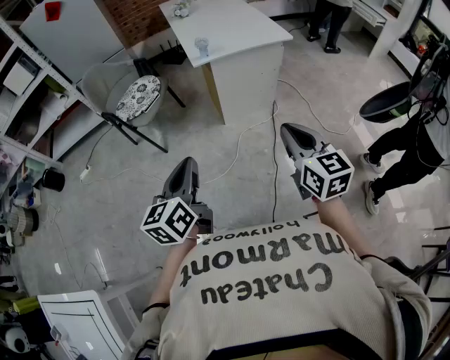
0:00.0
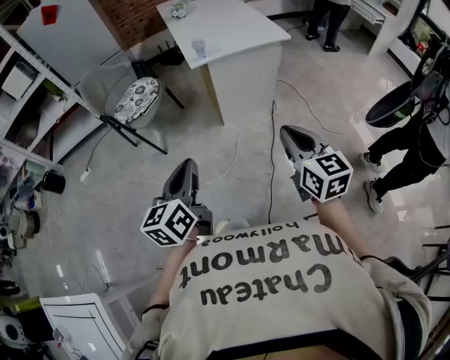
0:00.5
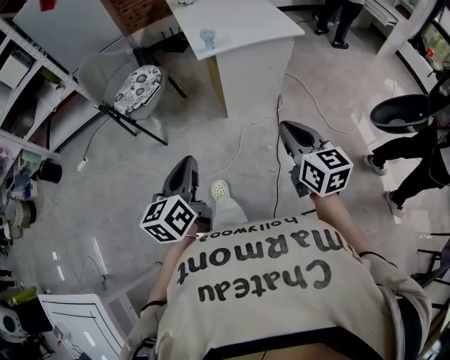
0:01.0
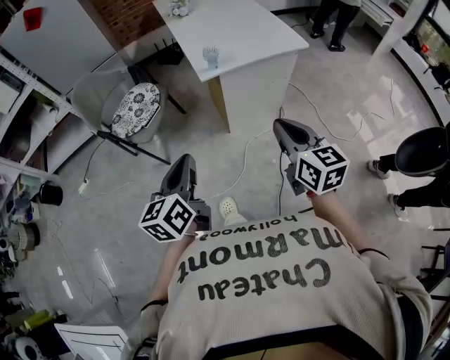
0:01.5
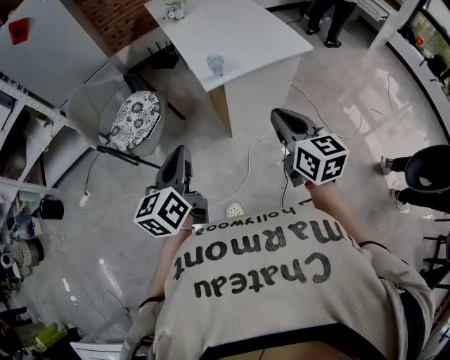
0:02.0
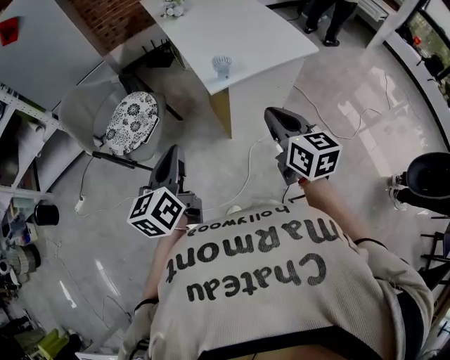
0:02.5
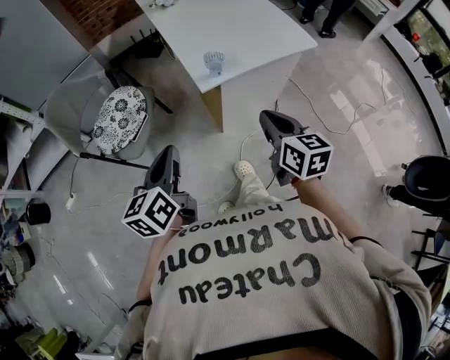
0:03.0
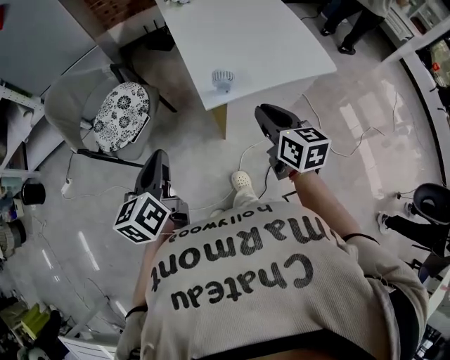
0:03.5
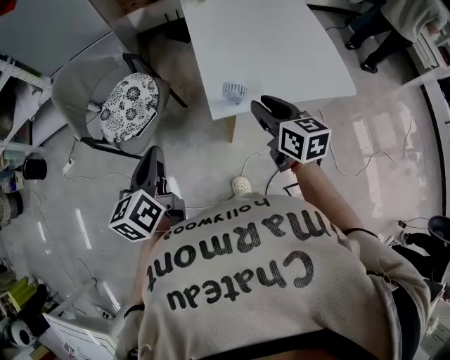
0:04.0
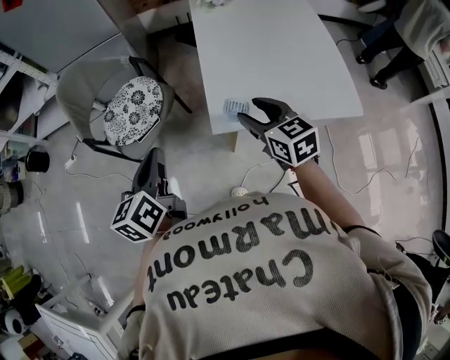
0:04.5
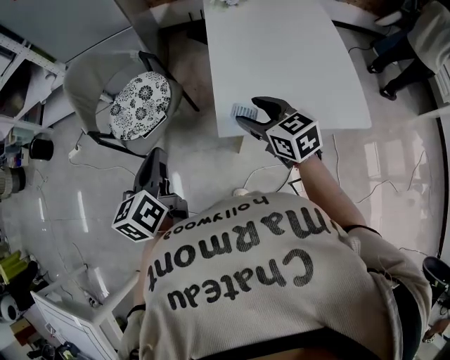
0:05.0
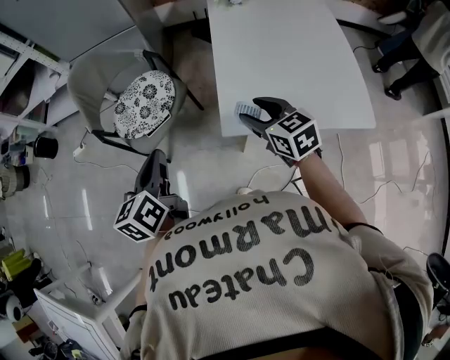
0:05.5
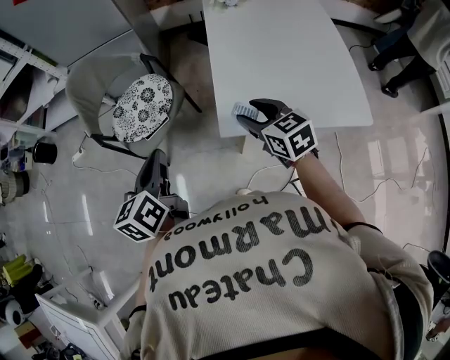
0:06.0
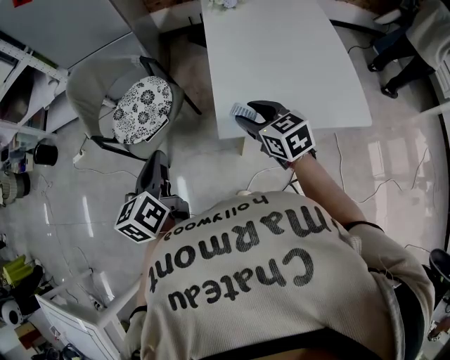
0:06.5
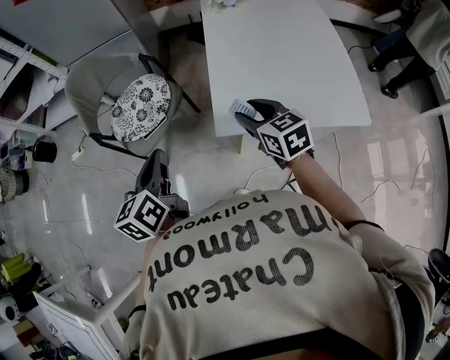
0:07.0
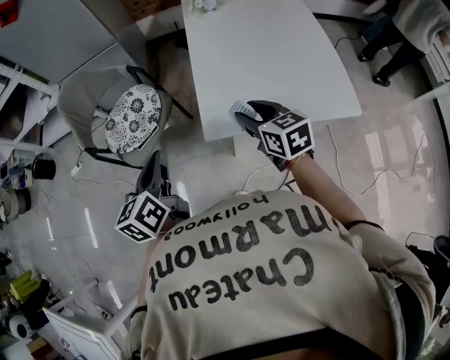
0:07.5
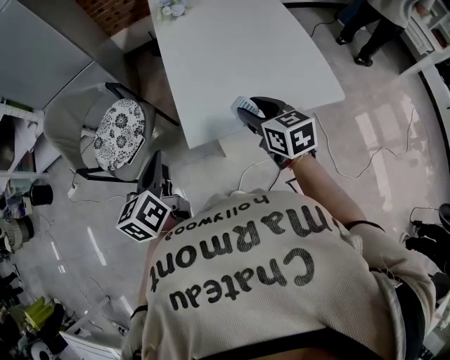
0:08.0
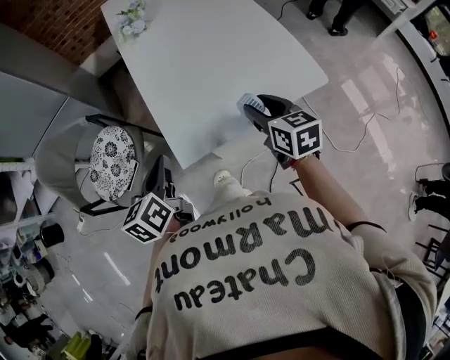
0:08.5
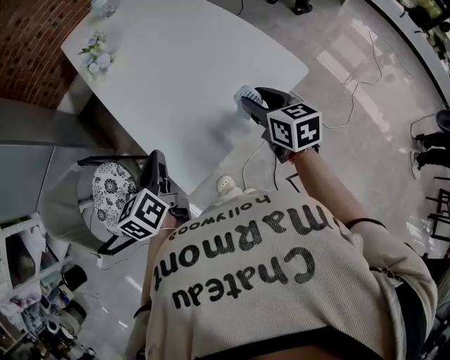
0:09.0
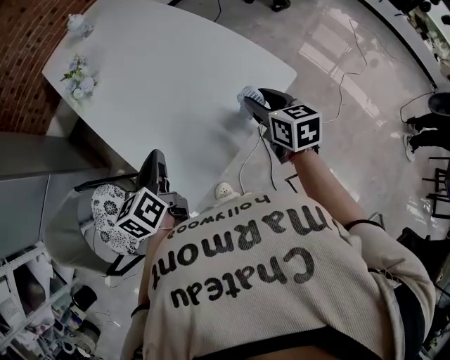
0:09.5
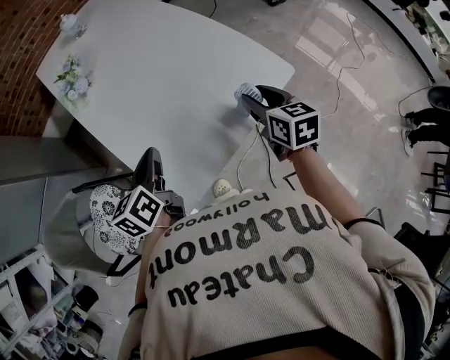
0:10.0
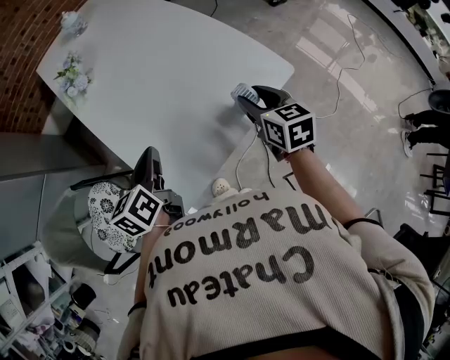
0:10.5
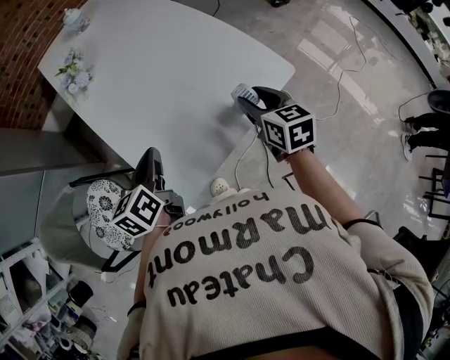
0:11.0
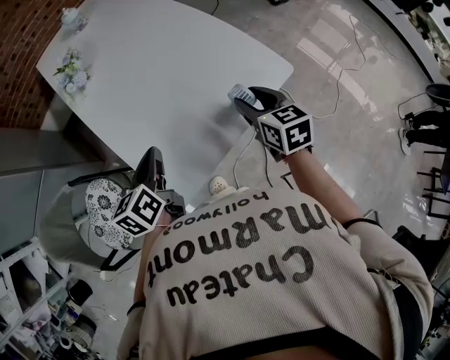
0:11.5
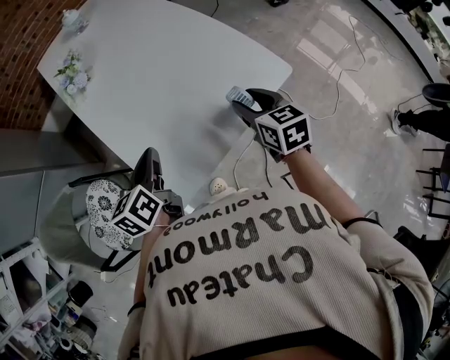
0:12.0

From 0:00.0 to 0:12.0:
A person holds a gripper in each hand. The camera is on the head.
From 0:00.0 to 0:02.0: Both grippers move forward, about 30 cm.
From 0:02.0 to 0:04.0: The two grippers go approximately 25 cm forward. The right gripper opens up, while the left gripper swivels some 20 degrees.
From 0:04.0 to 0:06.0: The right gripper travels forward by some 5 cm, and turns by some 30 degrees.
From 0:06.0 to 0:08.0: The two grippers go about 10 cm to the right. The right gripper swivels approximately 20 degrees.
From 0:08.0 to 0:10.0: The right gripper changes place by roughly 20 cm, and rotates roughly 40 degrees; the left gripper moves approximately 25 cm, and turns by roughly 30 degrees.
From 0:10.0 to 0:12.0: There are only small adjustments of the grippers.

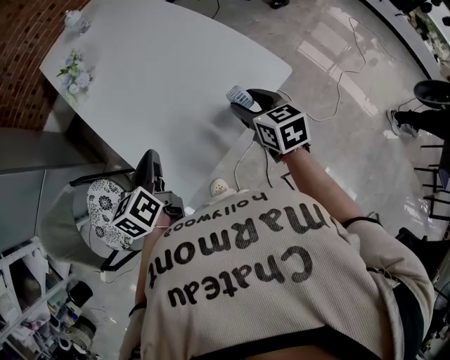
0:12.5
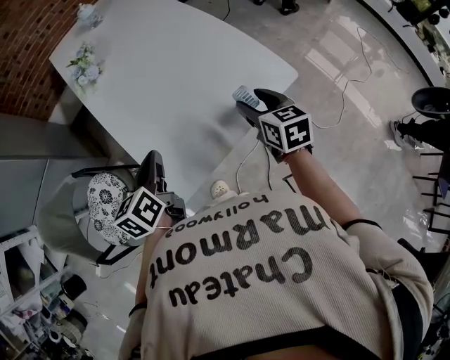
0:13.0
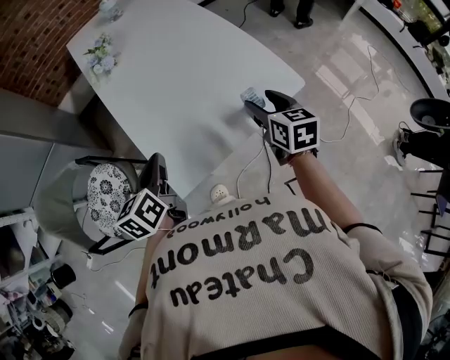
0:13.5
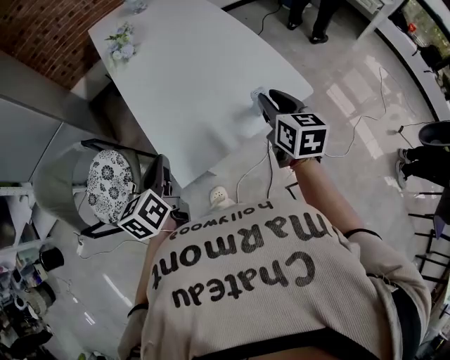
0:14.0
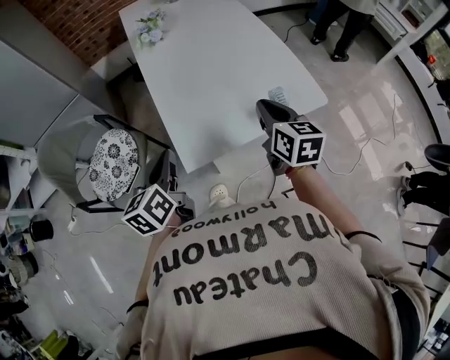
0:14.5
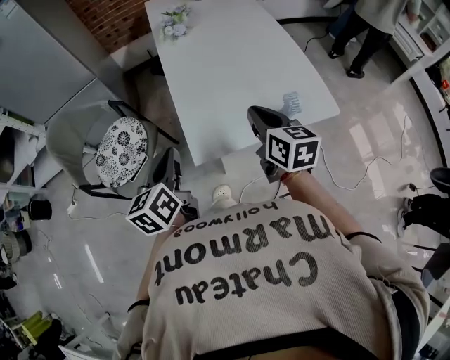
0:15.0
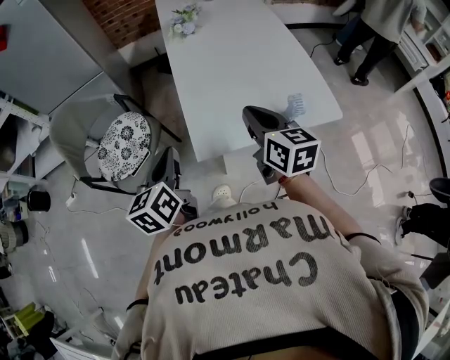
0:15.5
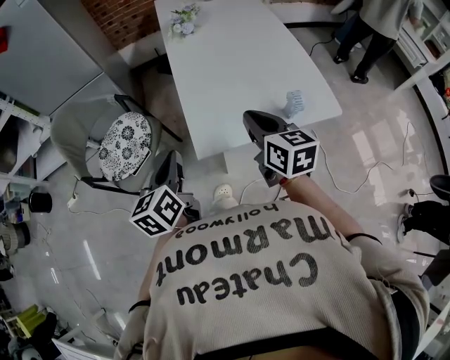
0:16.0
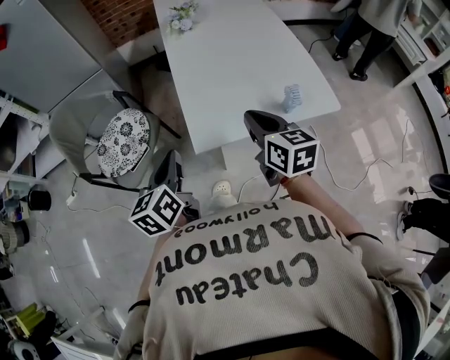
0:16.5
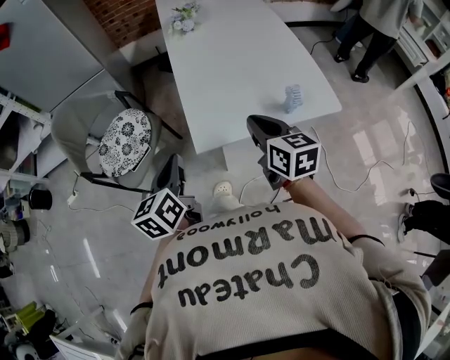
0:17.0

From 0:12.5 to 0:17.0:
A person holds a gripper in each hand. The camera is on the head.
From 0:12.5 to 0:14.5: The right gripper travels to the left, upward and backward by roughly 10 cm, and closes. Meanwhile the left gripper travels backward and to the left by roughly 15 cm, and turns by about 20 degrees.
From 0:14.5 to 0:17.0: The left gripper travels backward by approximately 10 cm. The right gripper goes about 10 cm to the left and backward.

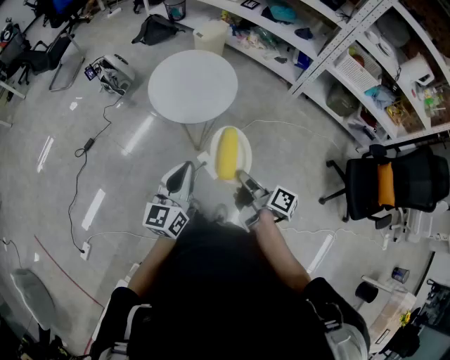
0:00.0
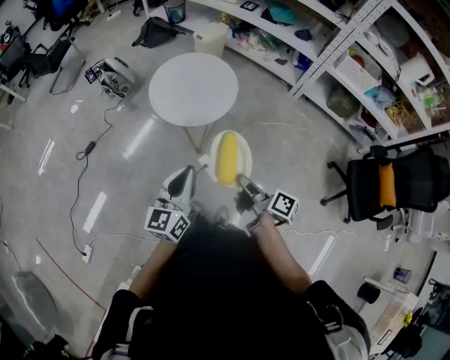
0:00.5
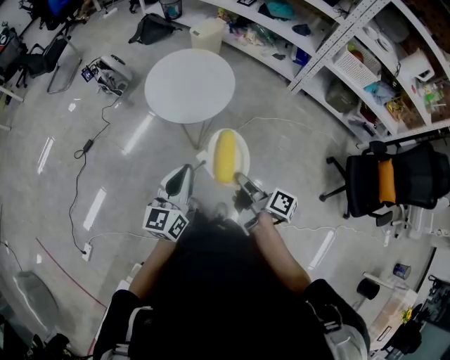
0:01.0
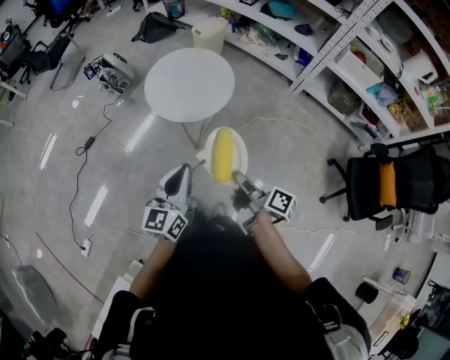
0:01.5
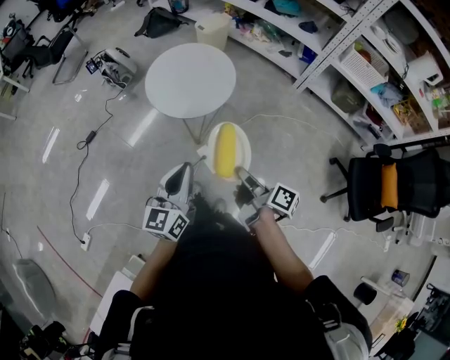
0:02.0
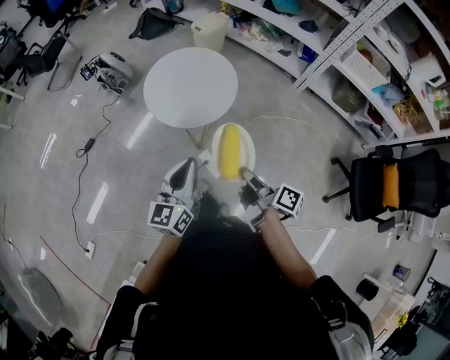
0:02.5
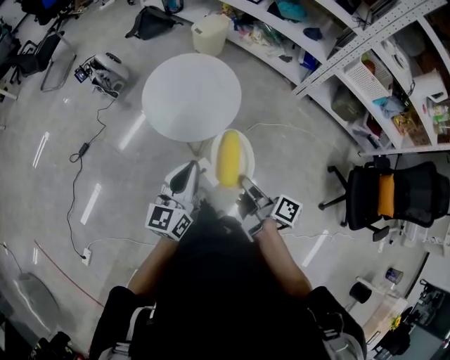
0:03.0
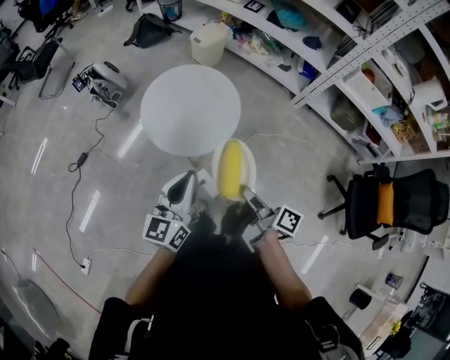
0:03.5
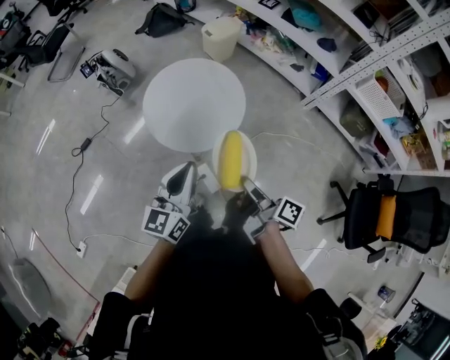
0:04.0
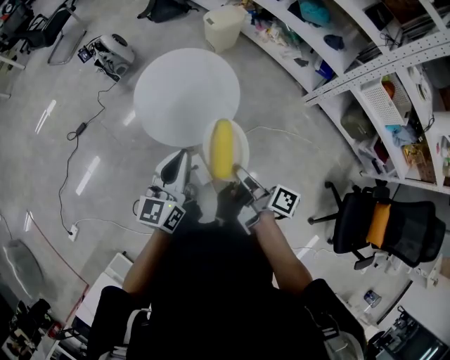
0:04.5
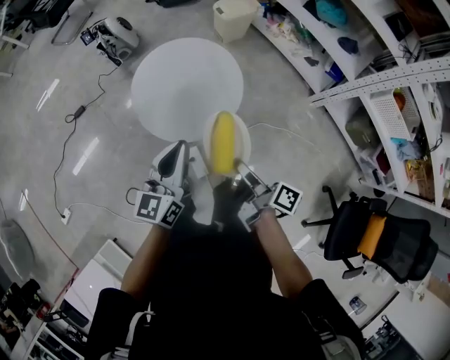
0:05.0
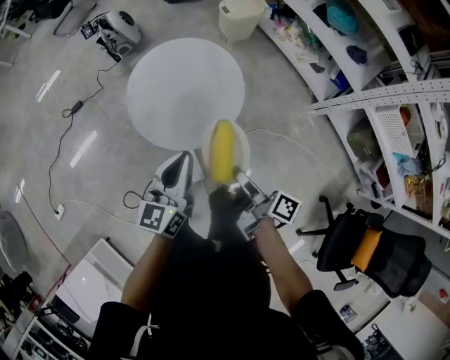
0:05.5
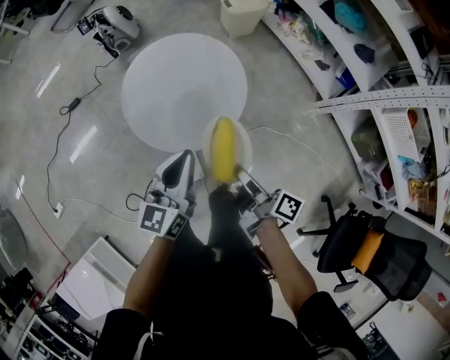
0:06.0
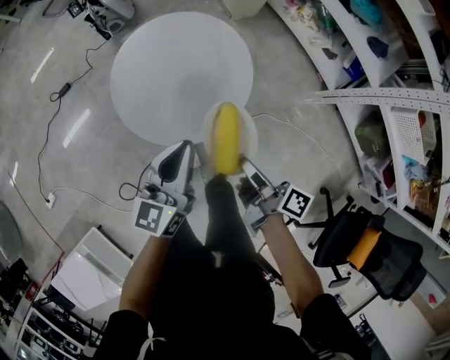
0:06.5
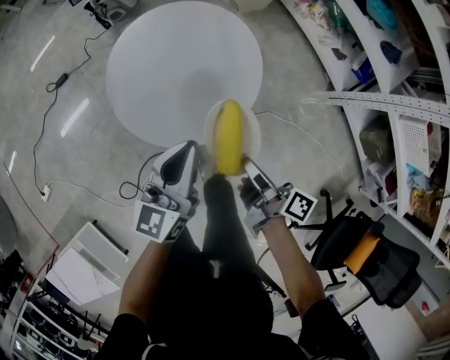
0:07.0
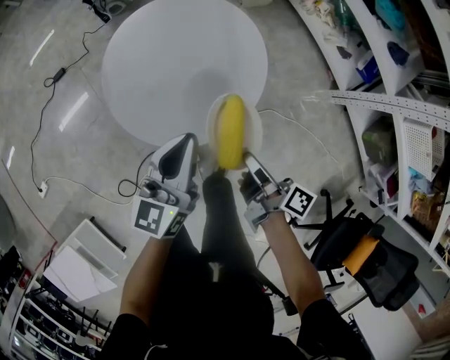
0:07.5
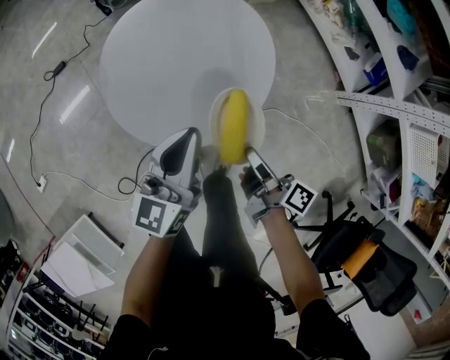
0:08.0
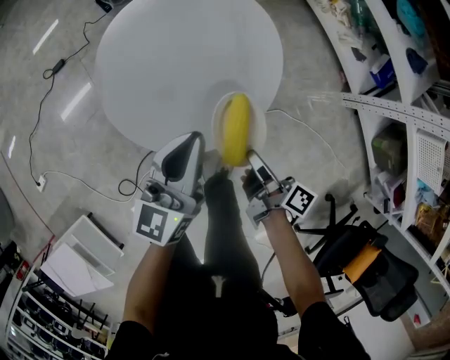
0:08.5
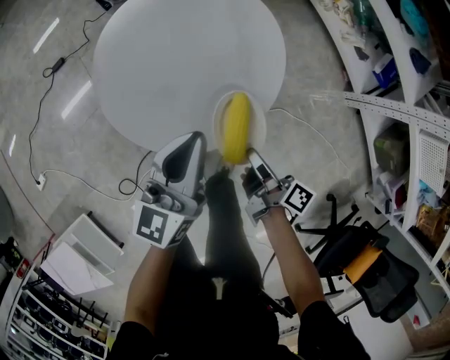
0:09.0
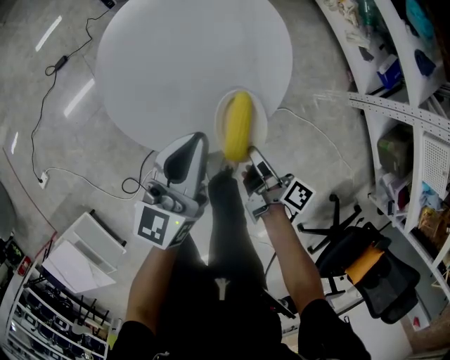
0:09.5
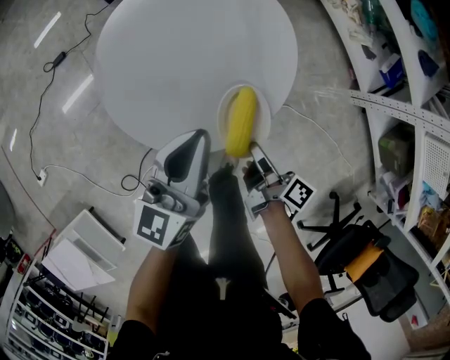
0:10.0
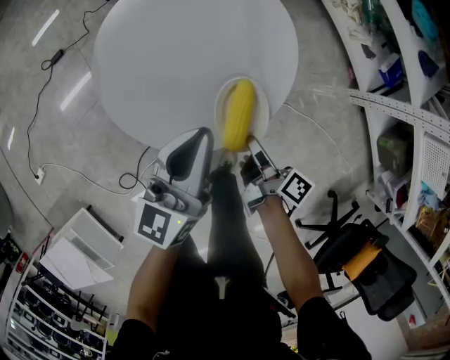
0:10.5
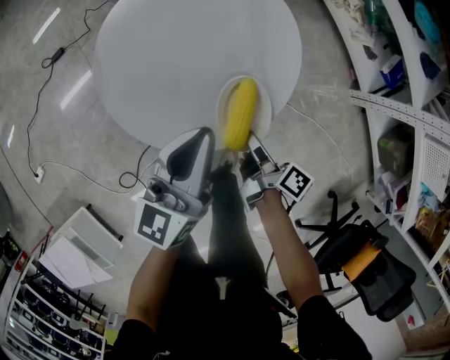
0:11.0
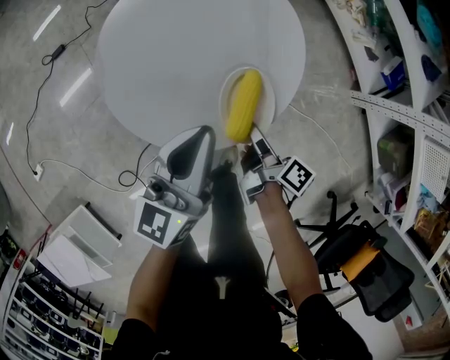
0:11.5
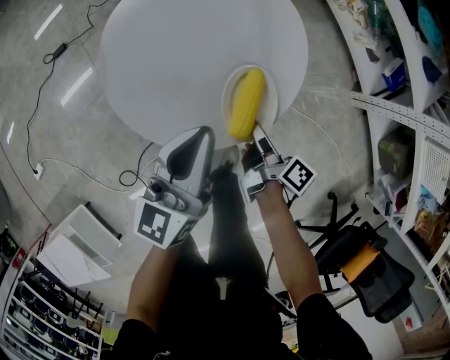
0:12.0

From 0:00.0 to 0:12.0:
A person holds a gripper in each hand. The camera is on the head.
From 0:02.0 to 0:04.0: The left gripper shifts by roughly 20 cm.
From 0:04.0 to 0:06.0: The left gripper ends up some 15 cm from where it was.
From 0:06.0 to 0:08.0: The left gripper shifts roughly 10 cm downward.
